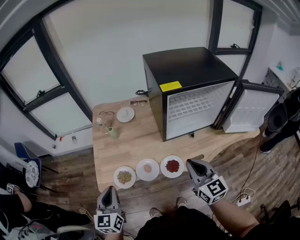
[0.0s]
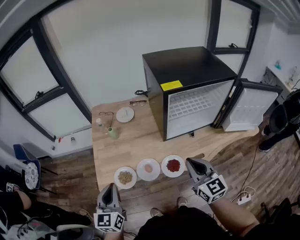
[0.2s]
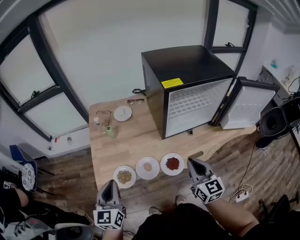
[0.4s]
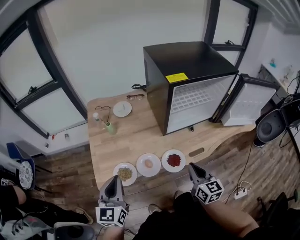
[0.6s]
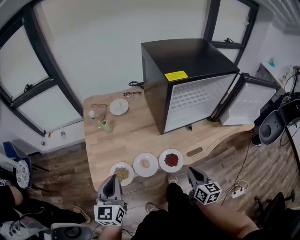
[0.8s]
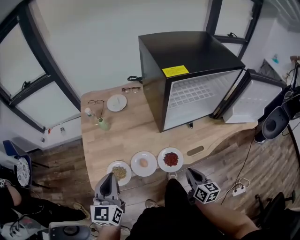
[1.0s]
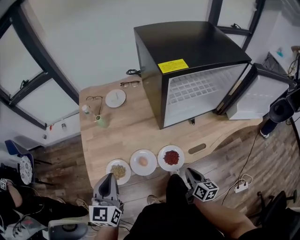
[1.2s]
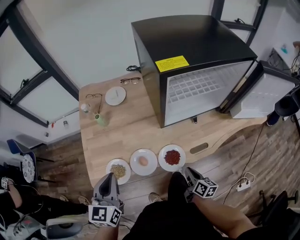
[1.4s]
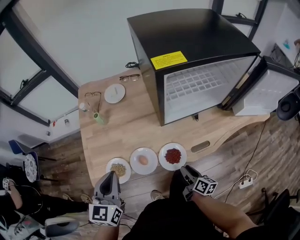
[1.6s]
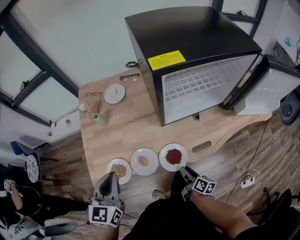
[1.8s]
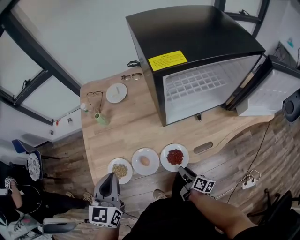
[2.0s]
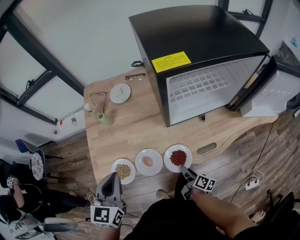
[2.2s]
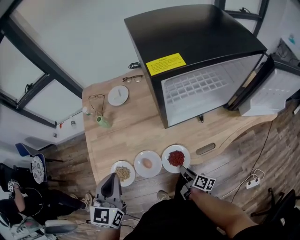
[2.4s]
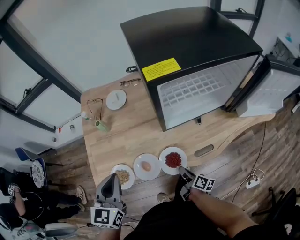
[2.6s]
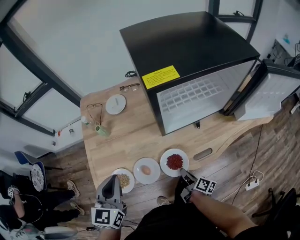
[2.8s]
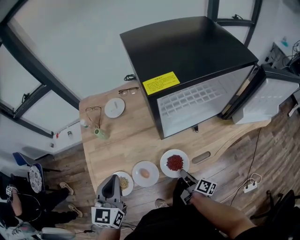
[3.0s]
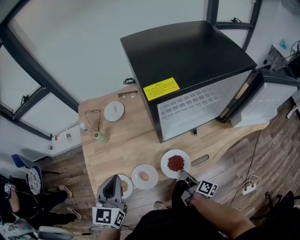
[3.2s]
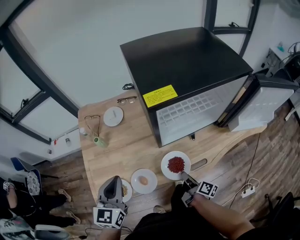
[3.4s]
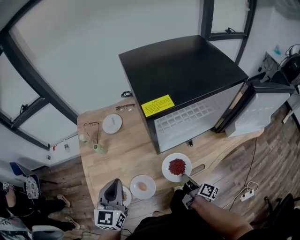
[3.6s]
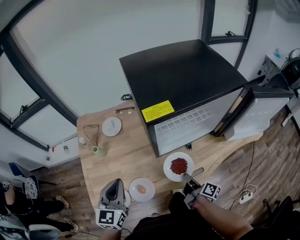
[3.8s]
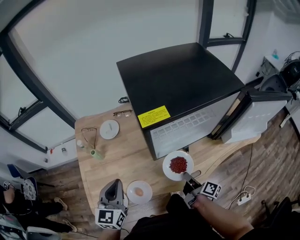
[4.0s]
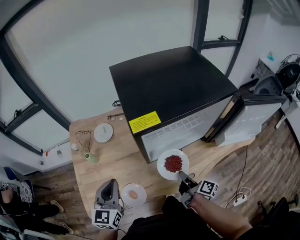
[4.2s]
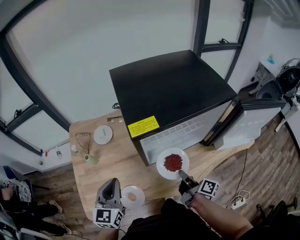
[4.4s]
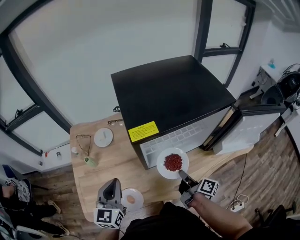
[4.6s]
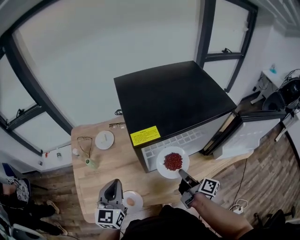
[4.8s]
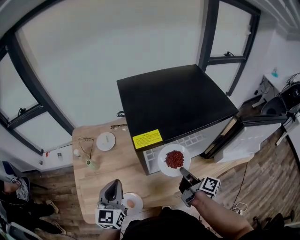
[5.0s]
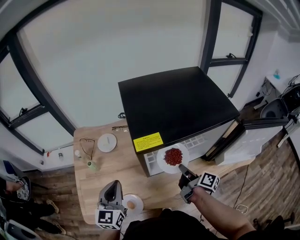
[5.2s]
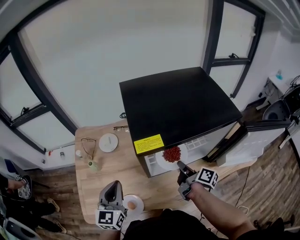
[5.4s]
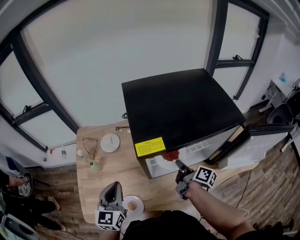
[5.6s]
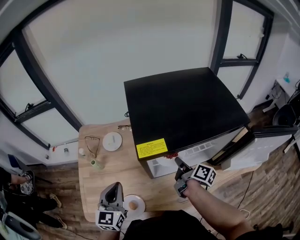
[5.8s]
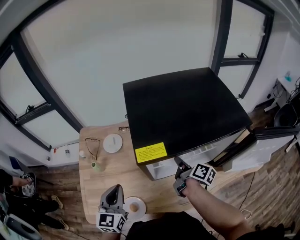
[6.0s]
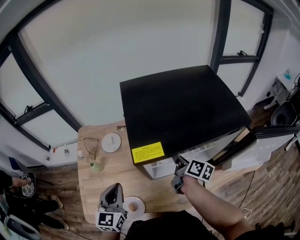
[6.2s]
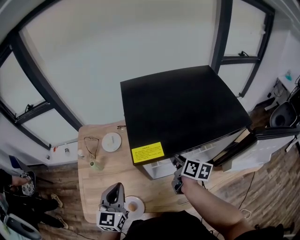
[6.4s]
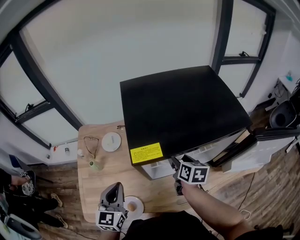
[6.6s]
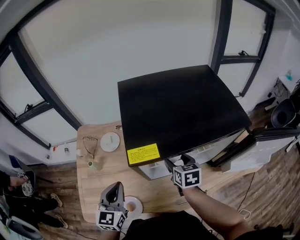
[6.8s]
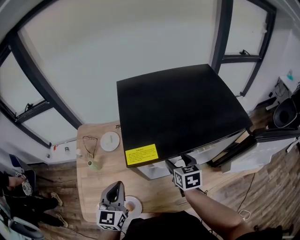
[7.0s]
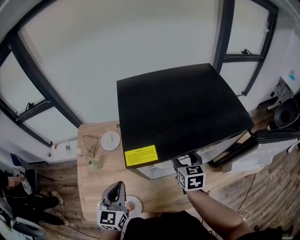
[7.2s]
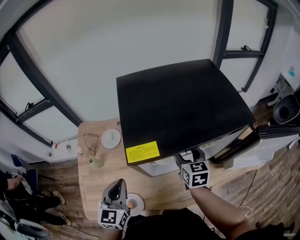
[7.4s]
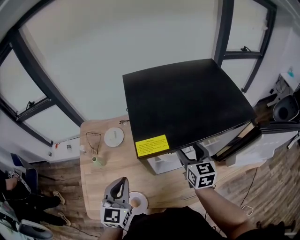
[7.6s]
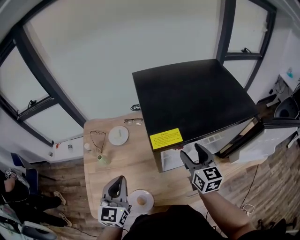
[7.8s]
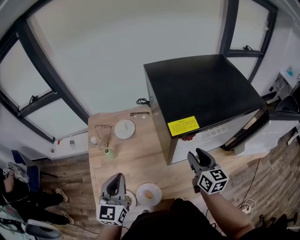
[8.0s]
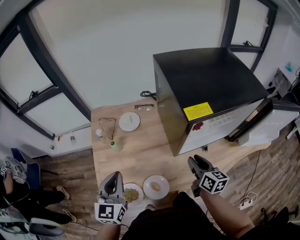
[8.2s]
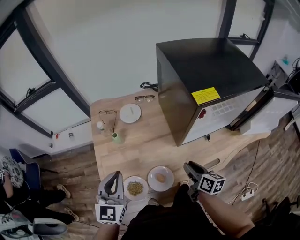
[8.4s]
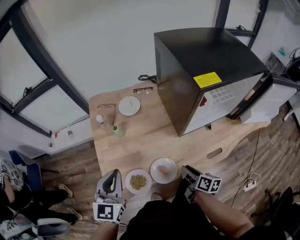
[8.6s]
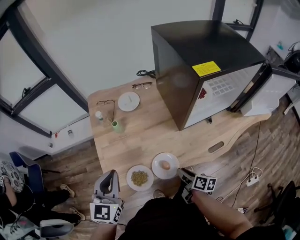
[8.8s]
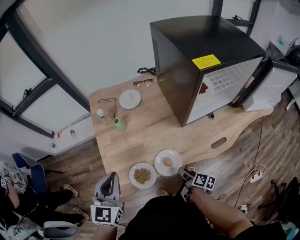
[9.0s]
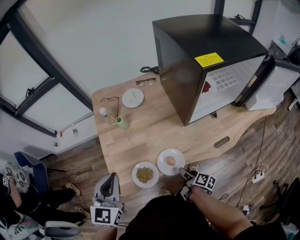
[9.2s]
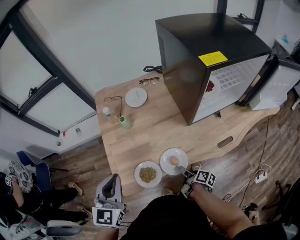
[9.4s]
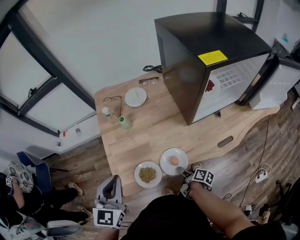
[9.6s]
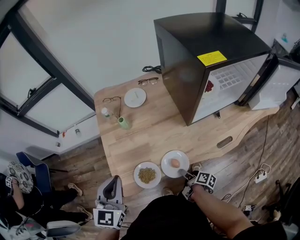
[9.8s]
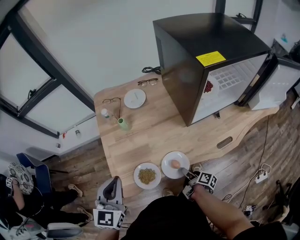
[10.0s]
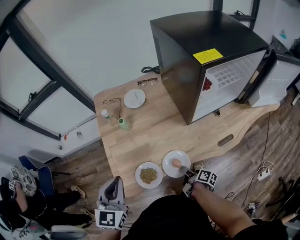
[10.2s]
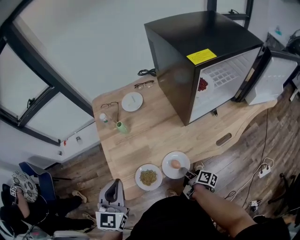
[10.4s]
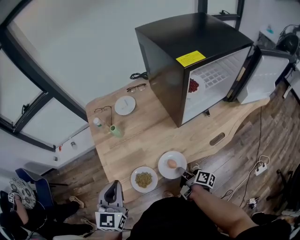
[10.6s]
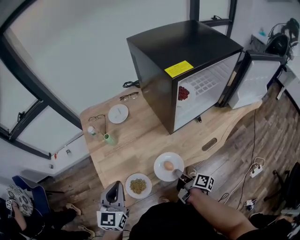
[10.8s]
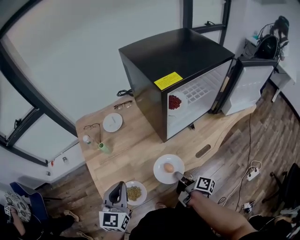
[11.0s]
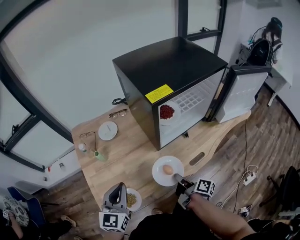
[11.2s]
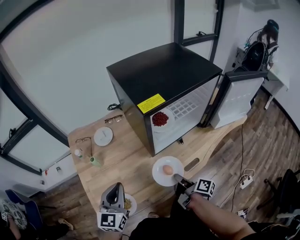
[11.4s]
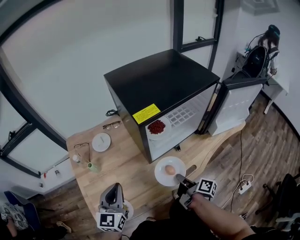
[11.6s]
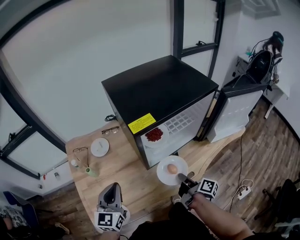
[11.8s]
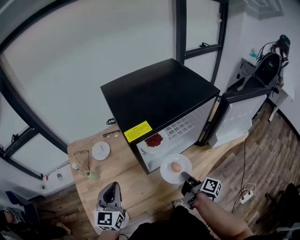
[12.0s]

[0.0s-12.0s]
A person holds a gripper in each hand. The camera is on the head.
0.0s to 1.6s: The right gripper travels downward by some 30 cm, rolls clockwise, seen from behind, by some 60 degrees, and opens its fingers. The left gripper is displaced forward and to the right by about 10 cm.
1.6s to 3.0s: The left gripper moves roughly 5 cm. The right gripper travels forward by some 5 cm, turns by some 20 degrees, and closes up.
3.0s to 4.4s: The right gripper shifts roughly 20 cm upward, forward and to the right; the left gripper is displaced forward and to the right by roughly 10 cm.
4.4s to 6.0s: The right gripper travels forward by about 15 cm.
6.0s to 7.6s: The right gripper goes some 5 cm upward, twists approximately 60 degrees counterclockwise, seen from behind, and opens its fingers.
7.6s to 9.0s: The right gripper heads backward, downward and to the left, covering approximately 50 cm, rotates around the line of its fingers by about 60 degrees, clockwise from behind, and closes its fingers. The left gripper is displaced to the left and backward by roughly 30 cm.
9.0s to 10.4s: The right gripper closes up.
10.4s to 12.0s: The right gripper moves to the right, upward and forward, some 35 cm, and swivels approximately 20 degrees; the left gripper moves to the right and forward, approximately 25 cm.

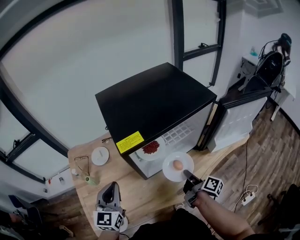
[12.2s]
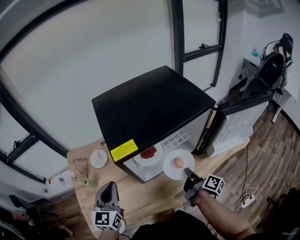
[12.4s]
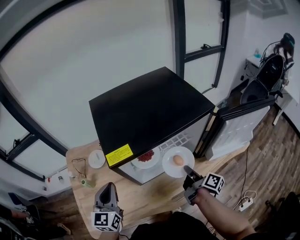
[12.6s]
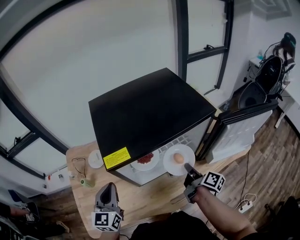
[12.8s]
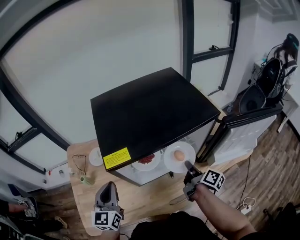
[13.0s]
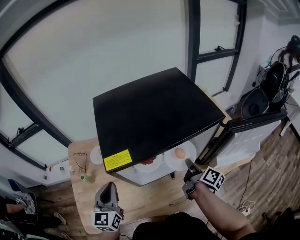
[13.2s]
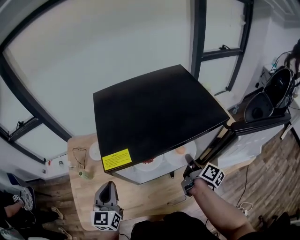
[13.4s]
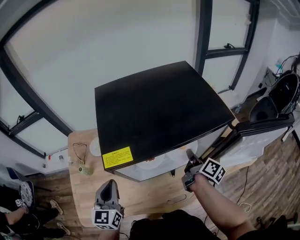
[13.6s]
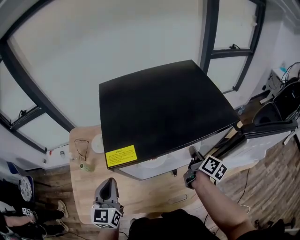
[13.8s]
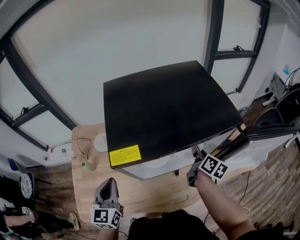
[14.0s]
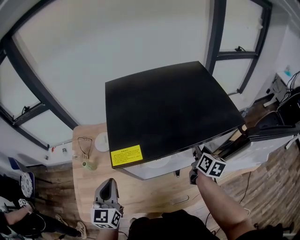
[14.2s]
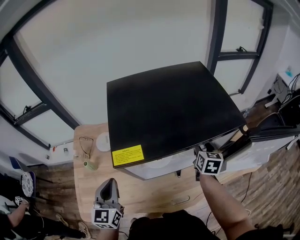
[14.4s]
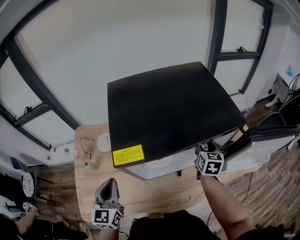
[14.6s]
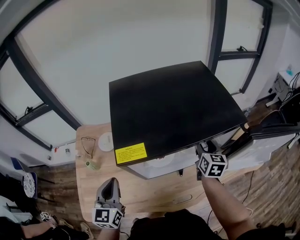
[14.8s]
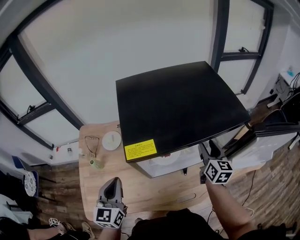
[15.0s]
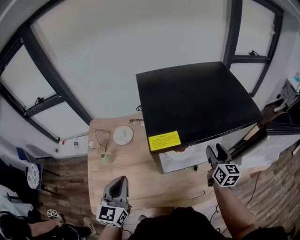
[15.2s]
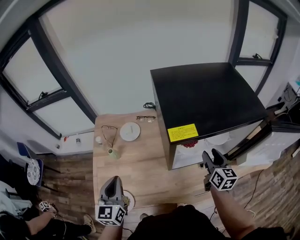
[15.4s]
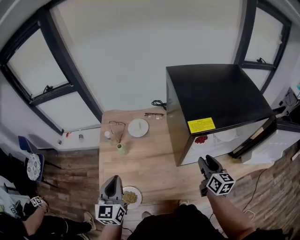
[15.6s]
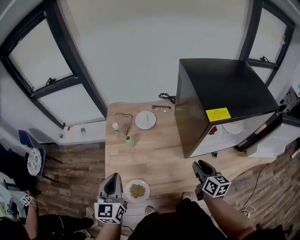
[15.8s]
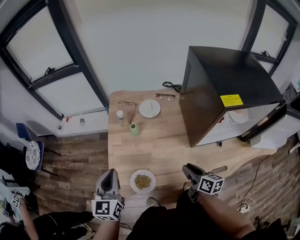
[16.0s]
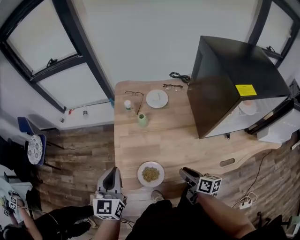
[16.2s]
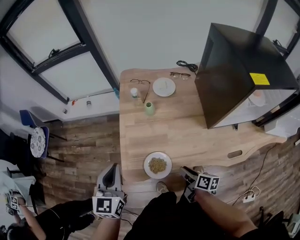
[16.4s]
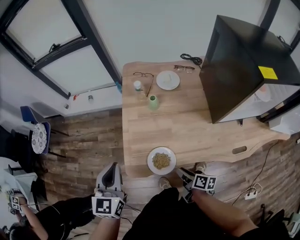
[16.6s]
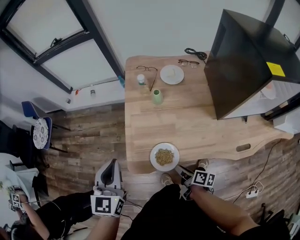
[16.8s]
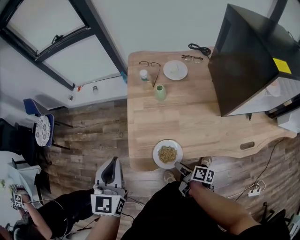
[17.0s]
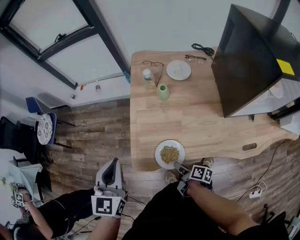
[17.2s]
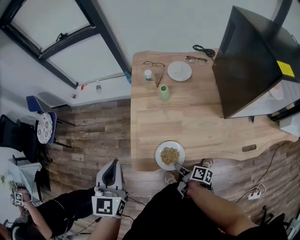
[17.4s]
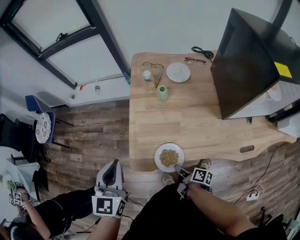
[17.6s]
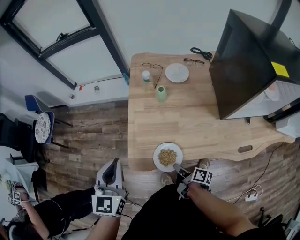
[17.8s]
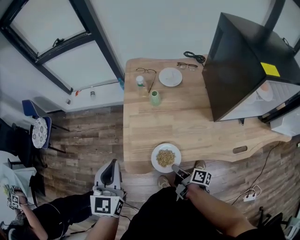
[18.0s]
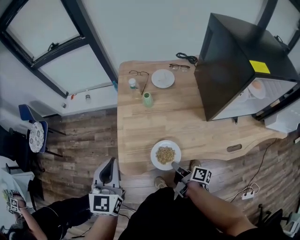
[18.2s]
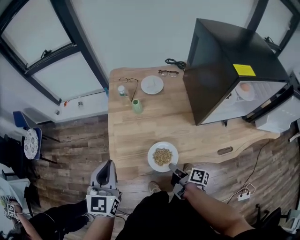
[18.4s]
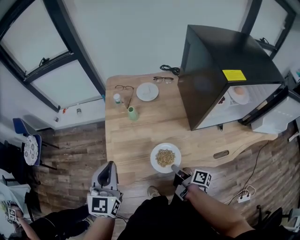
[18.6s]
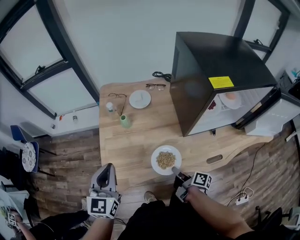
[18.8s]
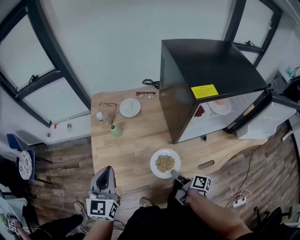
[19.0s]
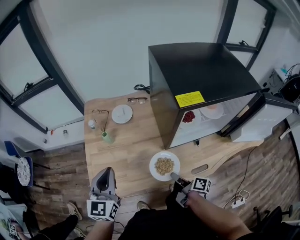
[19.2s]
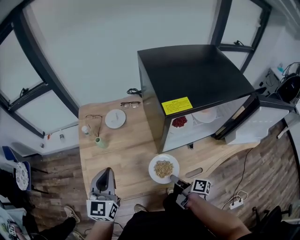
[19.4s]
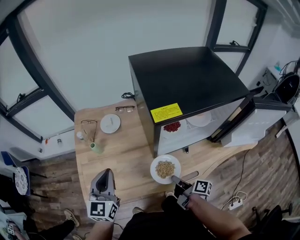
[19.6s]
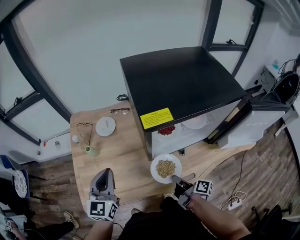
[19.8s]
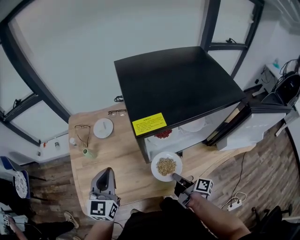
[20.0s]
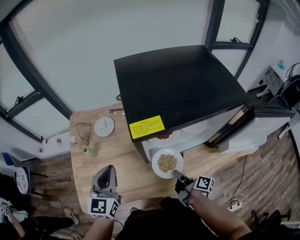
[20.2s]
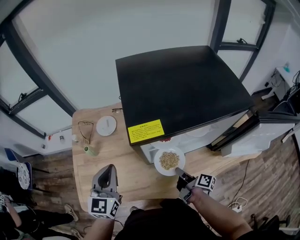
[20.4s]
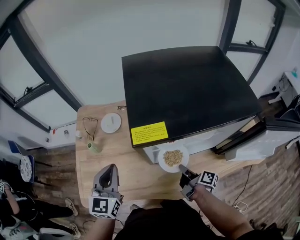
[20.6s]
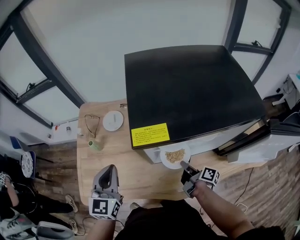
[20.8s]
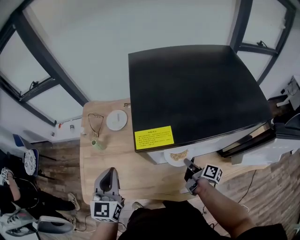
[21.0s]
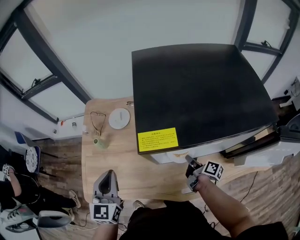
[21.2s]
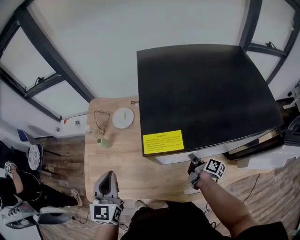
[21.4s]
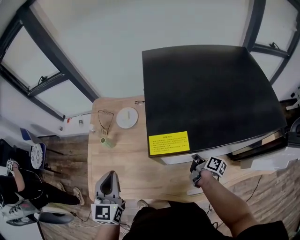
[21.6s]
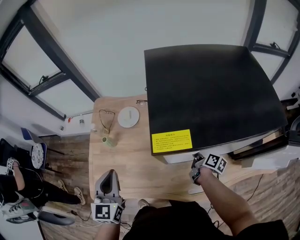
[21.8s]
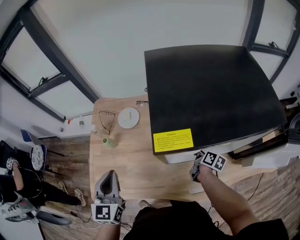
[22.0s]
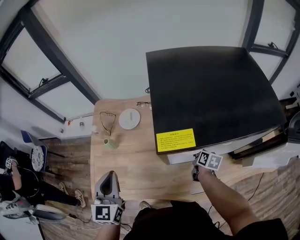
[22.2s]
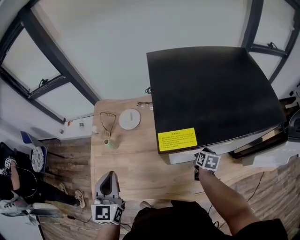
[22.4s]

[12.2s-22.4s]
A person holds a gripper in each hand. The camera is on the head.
12.2s to 13.6s: The left gripper shifts by some 5 cm; the right gripper travels forward by about 15 cm.
13.6s to 15.2s: The left gripper goes approximately 5 cm to the left; the right gripper ends up roughly 5 cm from where it was, rotates around the line of its fingers by approximately 50 degrees, counterclockwise from behind, and opens.
15.2s to 16.6s: The left gripper ends up some 35 cm from where it was; the right gripper ends up about 60 cm from where it was, and turns by some 60 degrees.
16.6s to 18.0s: The right gripper closes up.
18.0s to 19.4s: The grippers both shift to the right by some 25 cm.
19.4s to 21.0s: The right gripper is displaced to the right and forward by some 20 cm; the left gripper goes approximately 10 cm to the right.
21.0s to 22.4s: The right gripper travels forward by approximately 5 cm, swivels approximately 50 degrees, and opens up. Meanwhile the left gripper moves to the left, some 5 cm.

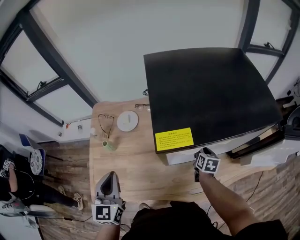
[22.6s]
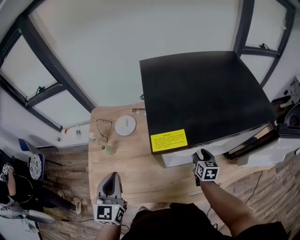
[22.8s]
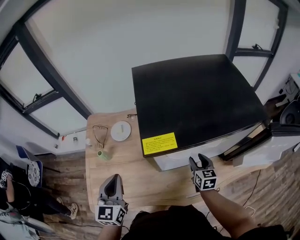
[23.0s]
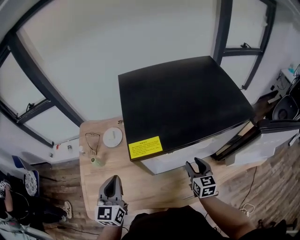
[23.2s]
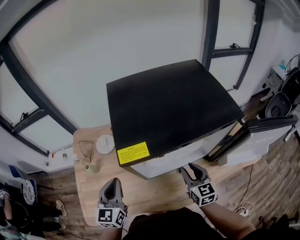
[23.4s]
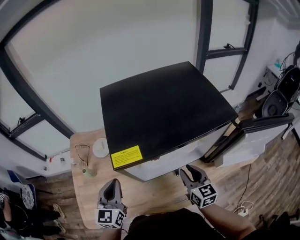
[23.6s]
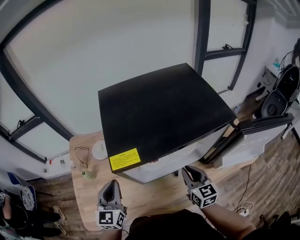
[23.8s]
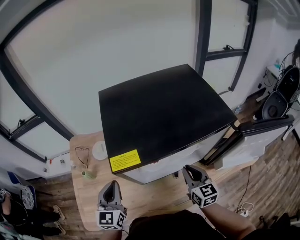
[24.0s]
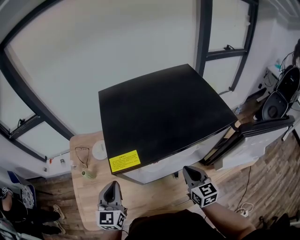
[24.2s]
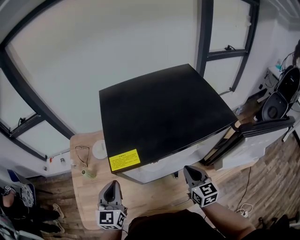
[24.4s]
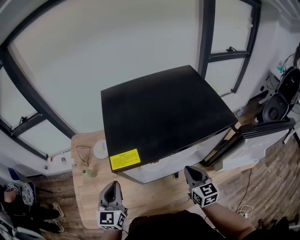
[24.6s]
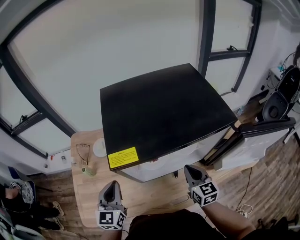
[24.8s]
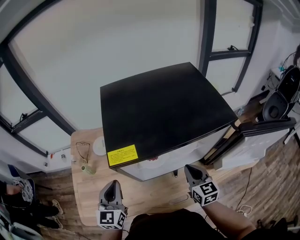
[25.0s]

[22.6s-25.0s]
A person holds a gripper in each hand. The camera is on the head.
22.6s to 23.8s: The right gripper shifts some 20 cm upward and backward, turns by roughly 30 degrees, and closes. Meanwhile the left gripper travels to the right and forward by about 15 cm.
23.8s to 25.0s: The grippers make only small movements.
